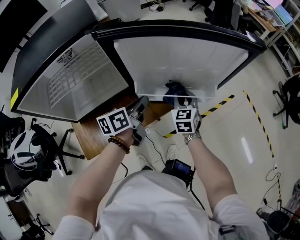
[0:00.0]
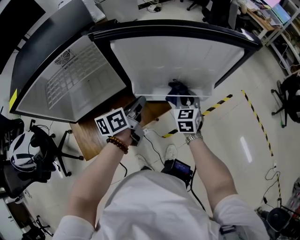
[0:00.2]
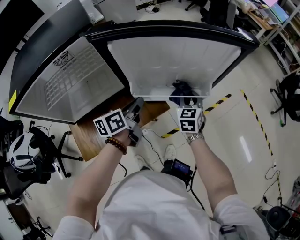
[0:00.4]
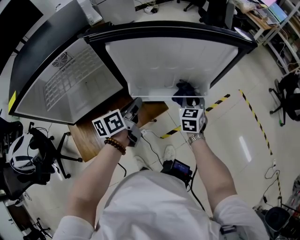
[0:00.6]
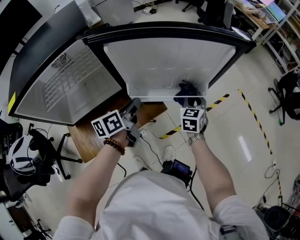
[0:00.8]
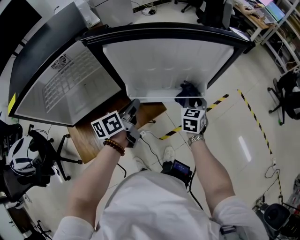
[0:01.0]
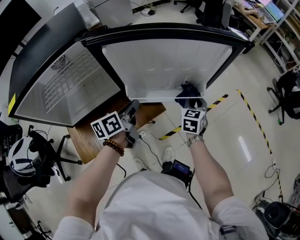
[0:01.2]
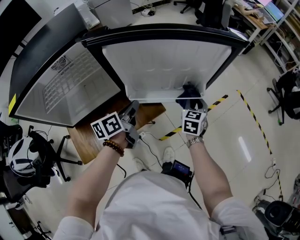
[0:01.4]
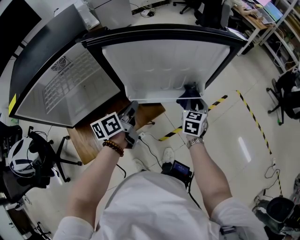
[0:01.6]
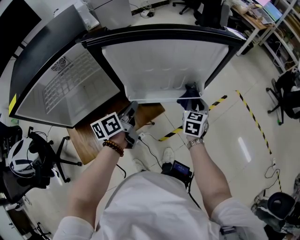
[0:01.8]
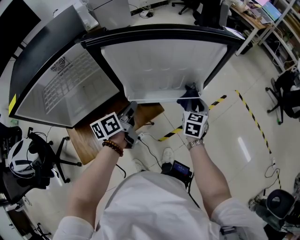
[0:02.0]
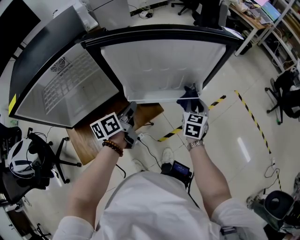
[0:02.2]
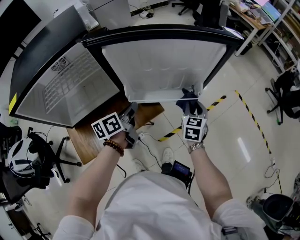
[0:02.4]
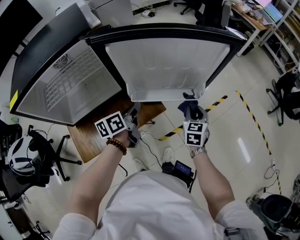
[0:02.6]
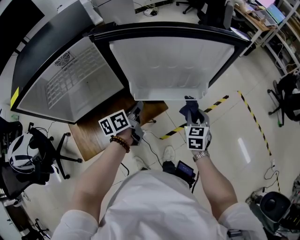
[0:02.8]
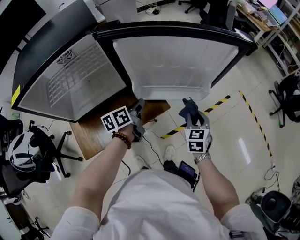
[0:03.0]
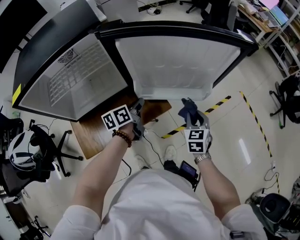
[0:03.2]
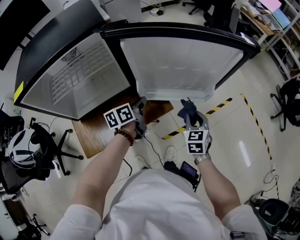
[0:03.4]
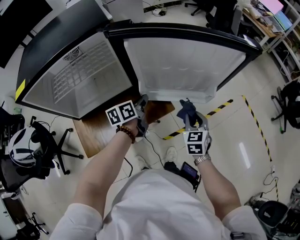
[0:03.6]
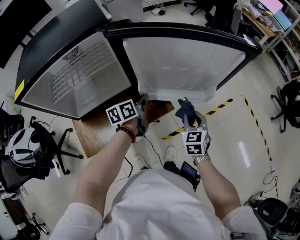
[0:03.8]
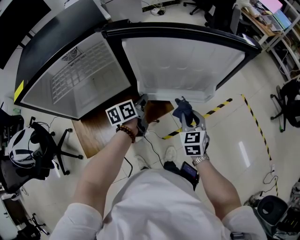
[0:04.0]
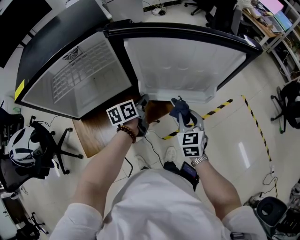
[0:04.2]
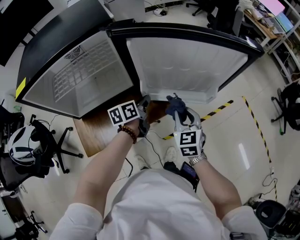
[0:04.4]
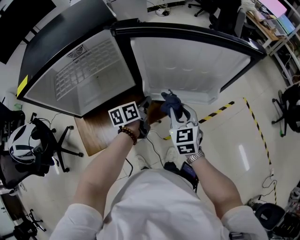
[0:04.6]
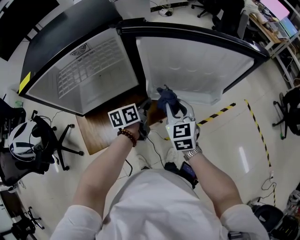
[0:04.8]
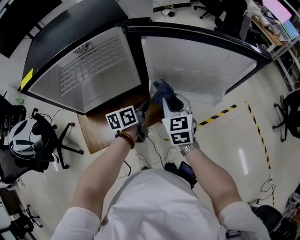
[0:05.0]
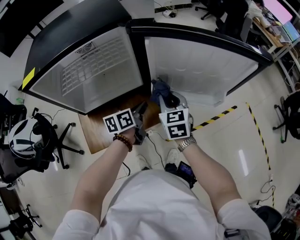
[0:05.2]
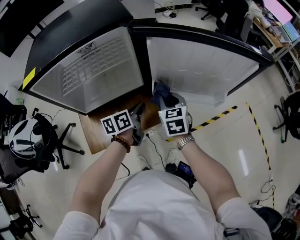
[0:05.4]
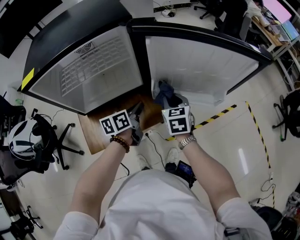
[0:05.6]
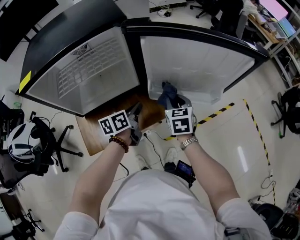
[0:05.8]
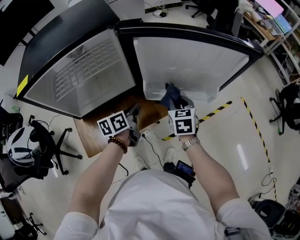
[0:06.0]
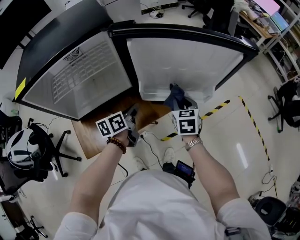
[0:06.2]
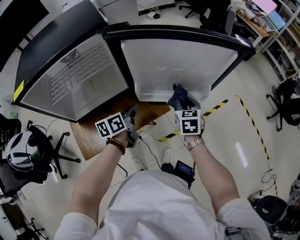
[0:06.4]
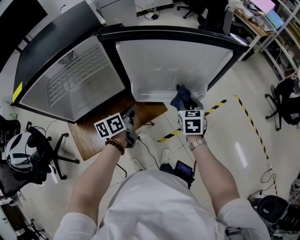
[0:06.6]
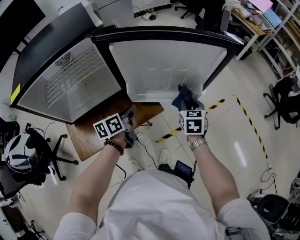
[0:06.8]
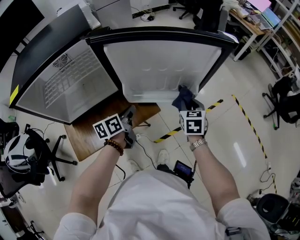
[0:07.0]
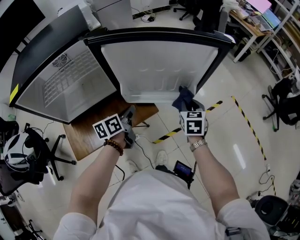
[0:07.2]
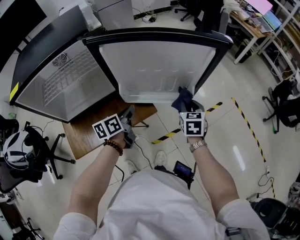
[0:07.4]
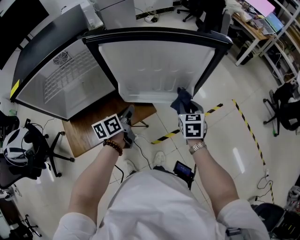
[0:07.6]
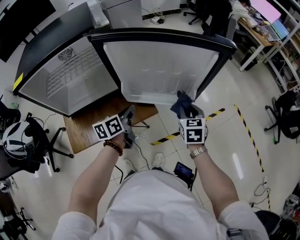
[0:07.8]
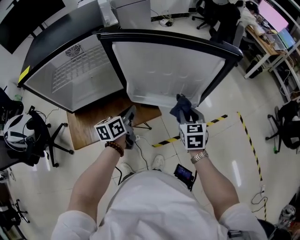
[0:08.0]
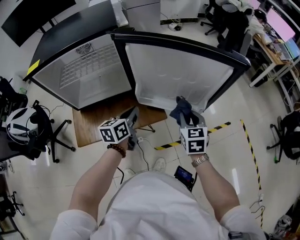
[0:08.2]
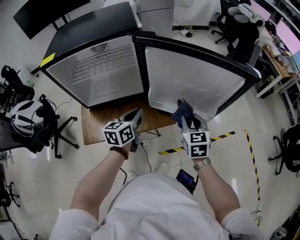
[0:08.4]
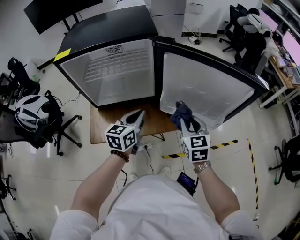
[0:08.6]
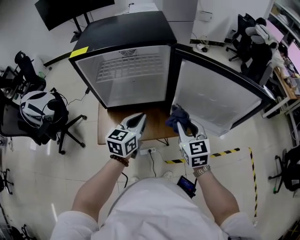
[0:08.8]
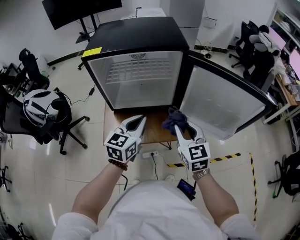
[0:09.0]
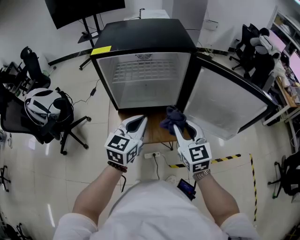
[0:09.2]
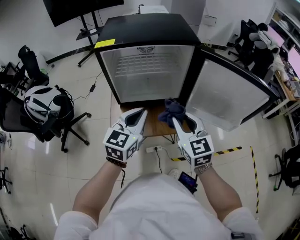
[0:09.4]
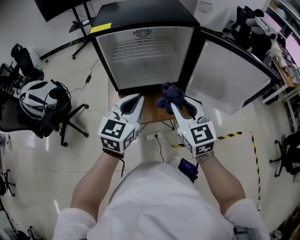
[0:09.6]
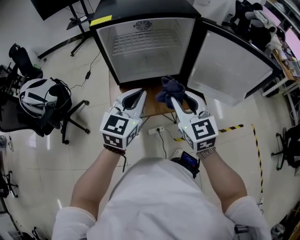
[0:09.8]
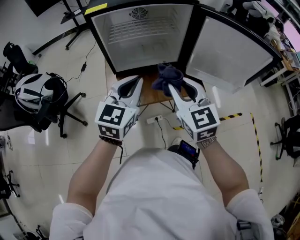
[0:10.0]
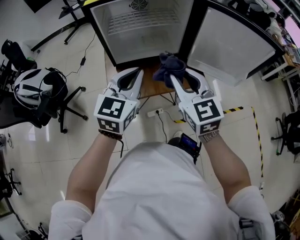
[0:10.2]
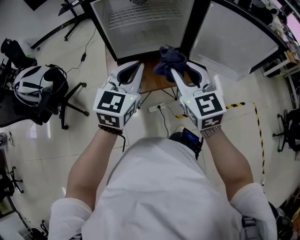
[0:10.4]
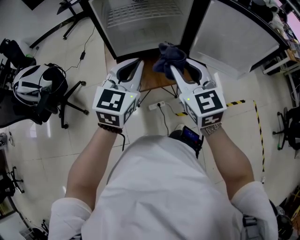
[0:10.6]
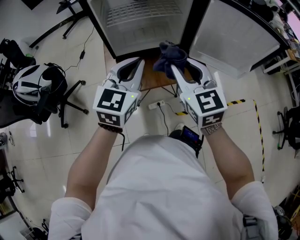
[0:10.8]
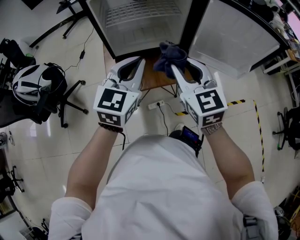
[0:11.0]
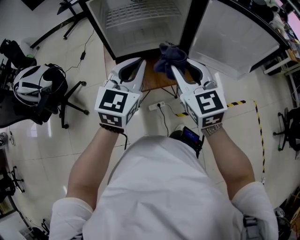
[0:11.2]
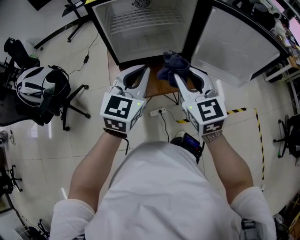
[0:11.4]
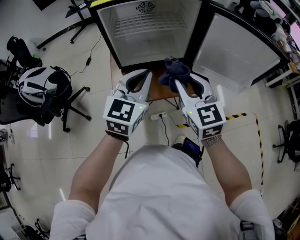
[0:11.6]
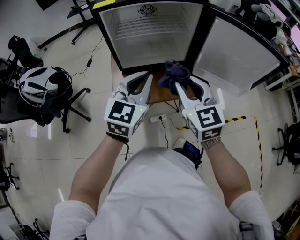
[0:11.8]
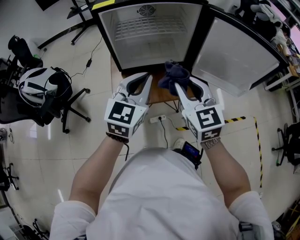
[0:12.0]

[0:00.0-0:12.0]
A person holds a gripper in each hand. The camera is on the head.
0:00.0 to 0:01.6: The right gripper moves to the right, approximately 10 cm, and turns by some 20 degrees.
0:01.6 to 0:03.0: The left gripper moves approximately 5 cm, while the right gripper heads backward, covering about 10 cm.
0:03.0 to 0:04.4: The right gripper shifts about 10 cm to the left and upward.
0:04.4 to 0:06.0: The right gripper is displaced forward by some 5 cm, and reaches roughly 10 cm to the left, then returns. Meanwhile the left gripper changes place by about 5 cm.
0:06.0 to 0:07.6: The right gripper is displaced to the right by about 15 cm. Meanwhile the left gripper heads to the right, covering some 10 cm.
0:07.6 to 0:09.0: The right gripper changes place by some 30 cm, and changes its angle by about 40 degrees; the left gripper shifts by some 25 cm, and changes its angle by approximately 40 degrees.
0:09.0 to 0:10.4: The right gripper moves to the left and backward, about 15 cm. The left gripper heads backward and to the left, covering some 10 cm.
0:10.4 to 0:12.0: The grippers move only a little.

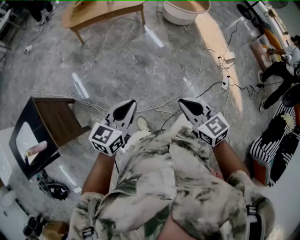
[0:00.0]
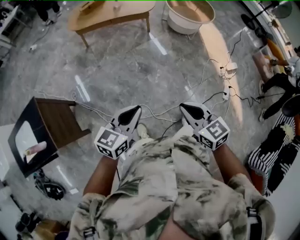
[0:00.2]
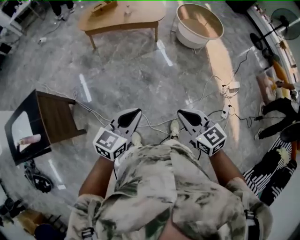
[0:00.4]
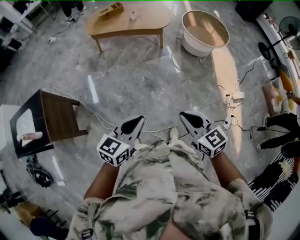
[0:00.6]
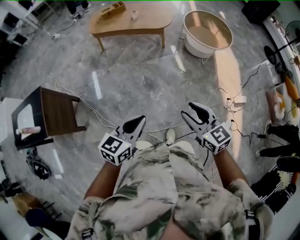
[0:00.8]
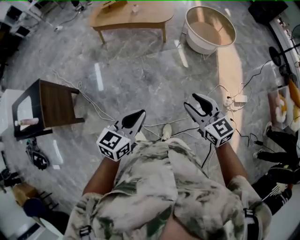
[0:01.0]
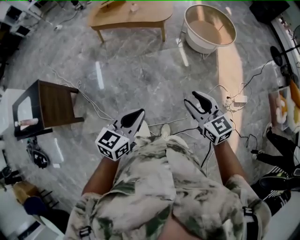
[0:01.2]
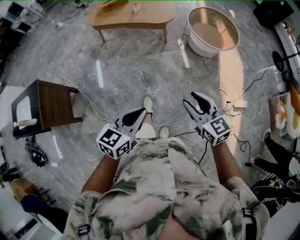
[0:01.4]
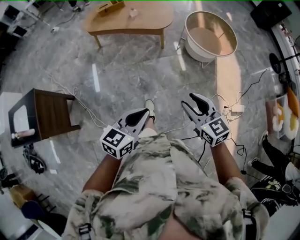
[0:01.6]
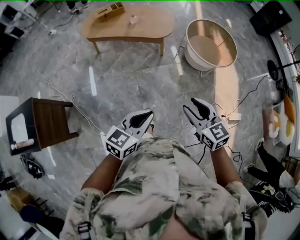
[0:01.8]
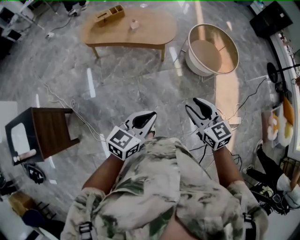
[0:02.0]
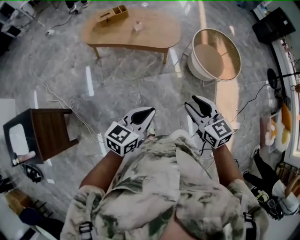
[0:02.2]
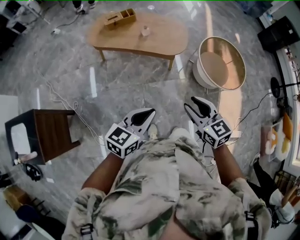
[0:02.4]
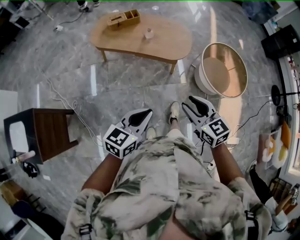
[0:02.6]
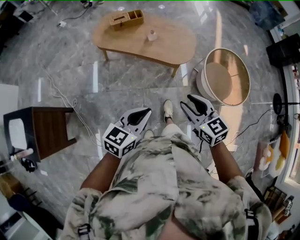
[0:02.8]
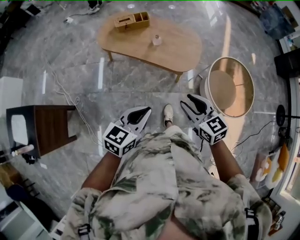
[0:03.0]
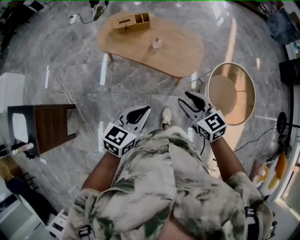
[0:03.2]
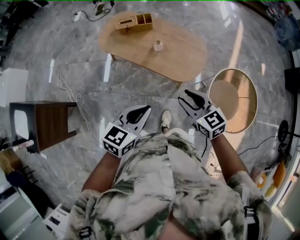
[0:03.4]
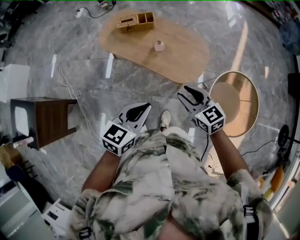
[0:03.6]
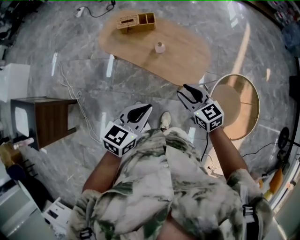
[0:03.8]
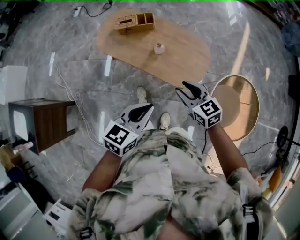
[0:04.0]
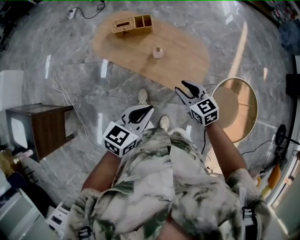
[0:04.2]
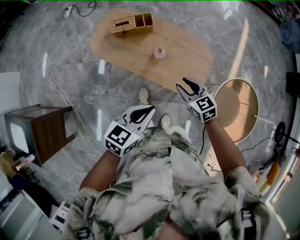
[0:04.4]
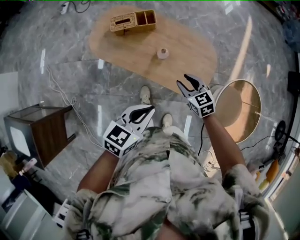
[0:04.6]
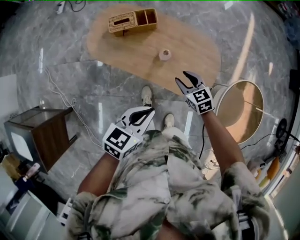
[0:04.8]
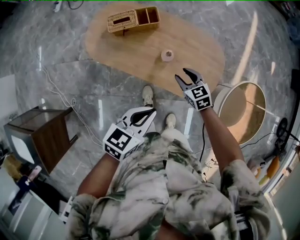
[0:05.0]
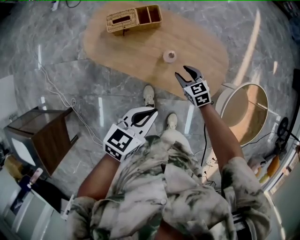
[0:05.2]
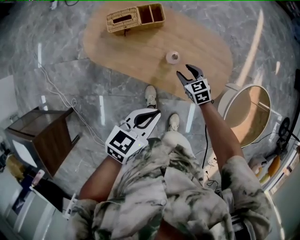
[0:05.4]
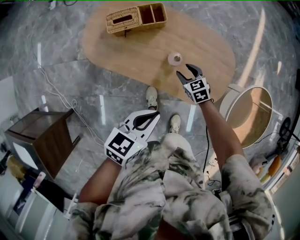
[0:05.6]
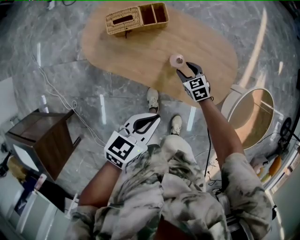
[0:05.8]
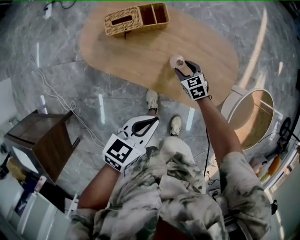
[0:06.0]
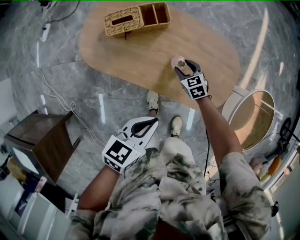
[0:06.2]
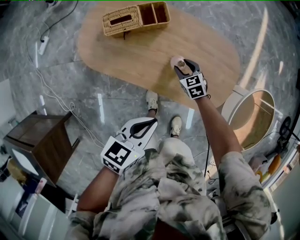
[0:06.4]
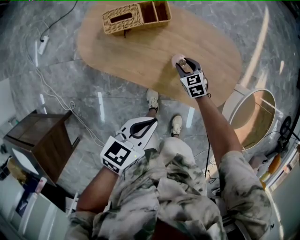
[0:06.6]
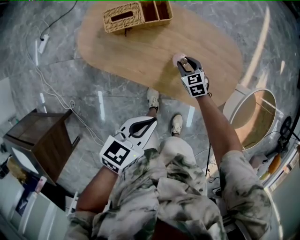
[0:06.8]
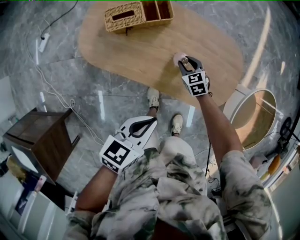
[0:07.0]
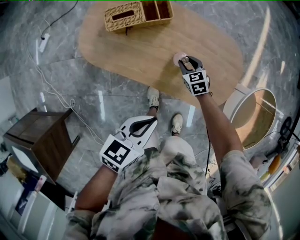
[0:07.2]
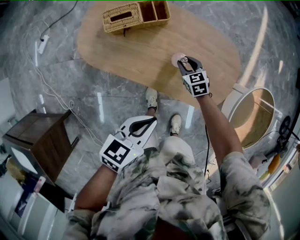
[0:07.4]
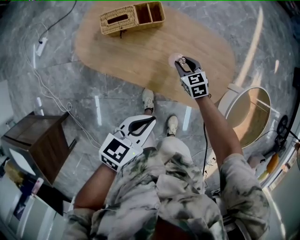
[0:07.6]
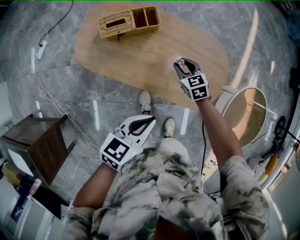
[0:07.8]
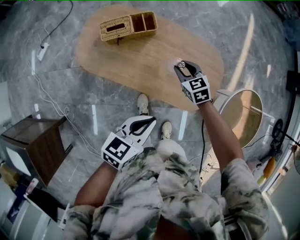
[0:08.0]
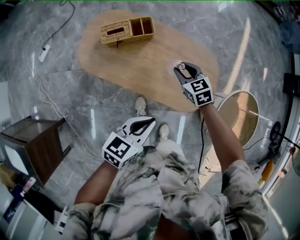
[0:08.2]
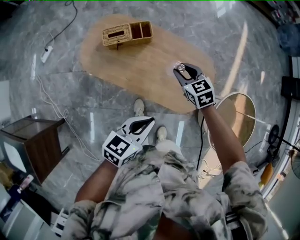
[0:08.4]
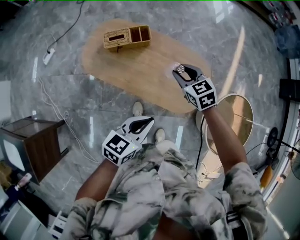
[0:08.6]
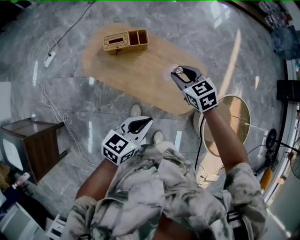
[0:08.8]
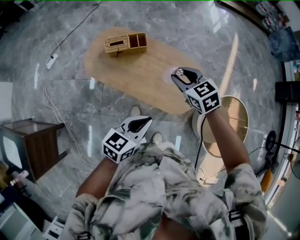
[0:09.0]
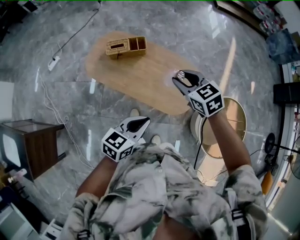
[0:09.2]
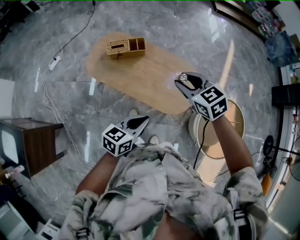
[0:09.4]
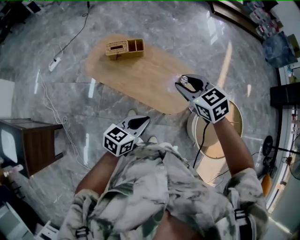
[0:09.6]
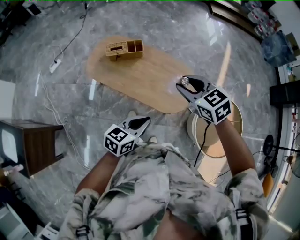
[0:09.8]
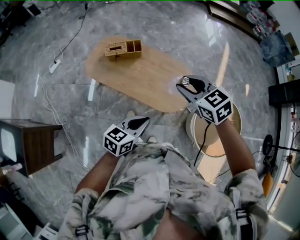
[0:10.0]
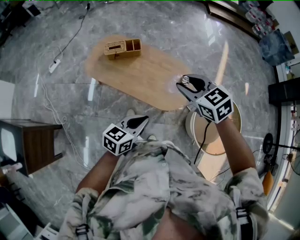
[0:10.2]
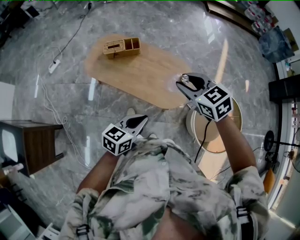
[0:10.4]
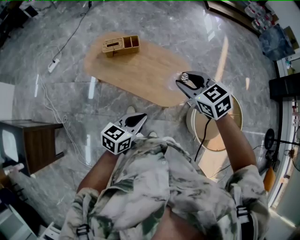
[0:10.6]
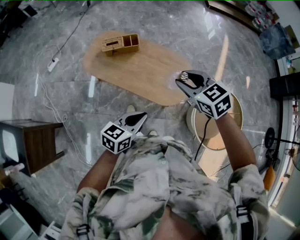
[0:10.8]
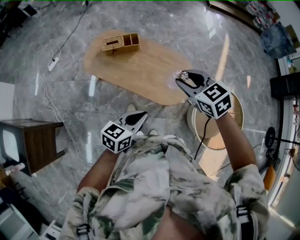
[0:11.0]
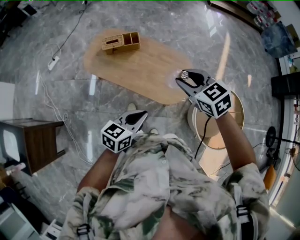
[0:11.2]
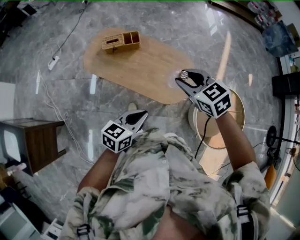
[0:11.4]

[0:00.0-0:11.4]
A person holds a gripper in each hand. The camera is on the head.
0:00.0 to 0:01.4: The two grippers go about 35 cm to the right and forward. The right gripper opens its fingers.
0:01.4 to 0:02.8: The two grippers travel together, forward, roughly 50 cm.
0:02.8 to 0:04.2: Both grippers move forward, roughly 35 cm.
0:04.2 to 0:05.6: The left gripper is displaced forward, downward and to the left by some 30 cm. Meanwhile the right gripper moves downward and forward, about 40 cm, and changes its angle by roughly 20 degrees.
0:05.6 to 0:07.2: The left gripper ends up about 5 cm from where it was. Meanwhile the right gripper moves downward, about 5 cm.
0:07.2 to 0:08.6: The right gripper travels upward by about 35 cm, while the left gripper shifts about 15 cm upward and to the right.
0:08.6 to 0:10.0: The left gripper is displaced backward, upward and to the right by about 15 cm. Meanwhile the right gripper shifts some 30 cm upward and backward.
0:10.0 to 0:11.4: The grippers make only small movements.
